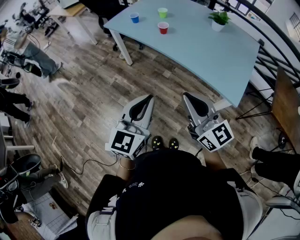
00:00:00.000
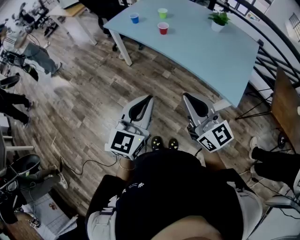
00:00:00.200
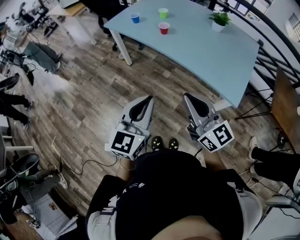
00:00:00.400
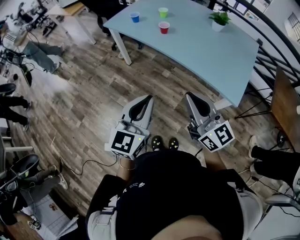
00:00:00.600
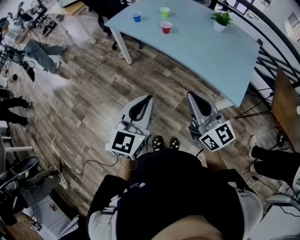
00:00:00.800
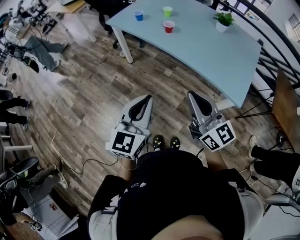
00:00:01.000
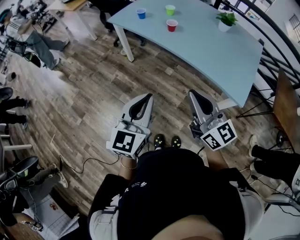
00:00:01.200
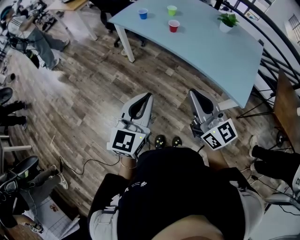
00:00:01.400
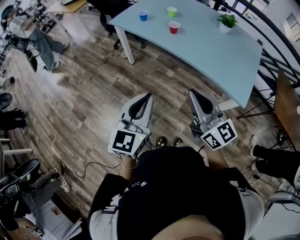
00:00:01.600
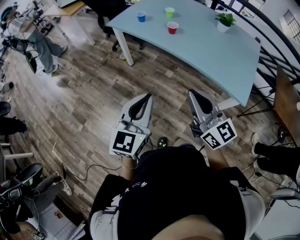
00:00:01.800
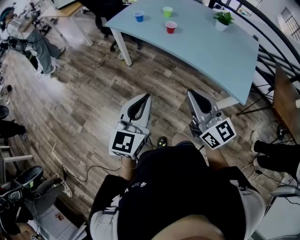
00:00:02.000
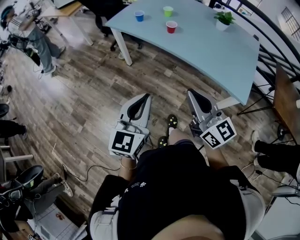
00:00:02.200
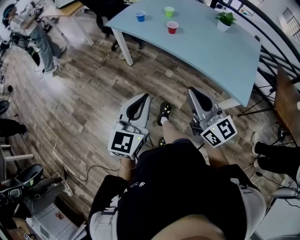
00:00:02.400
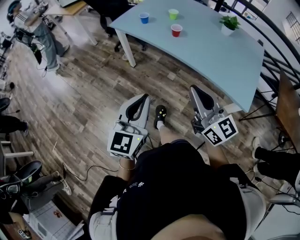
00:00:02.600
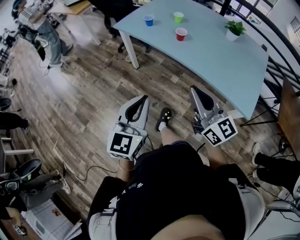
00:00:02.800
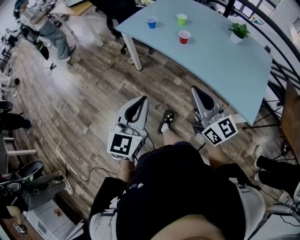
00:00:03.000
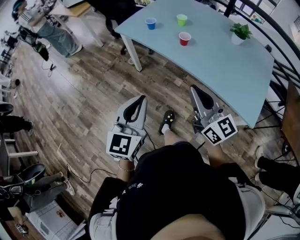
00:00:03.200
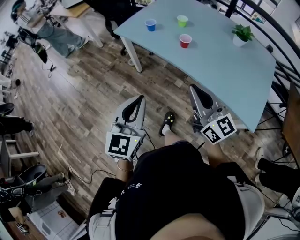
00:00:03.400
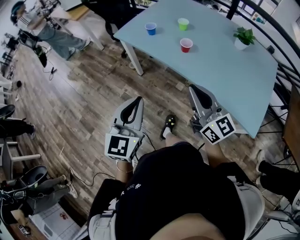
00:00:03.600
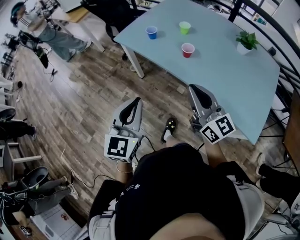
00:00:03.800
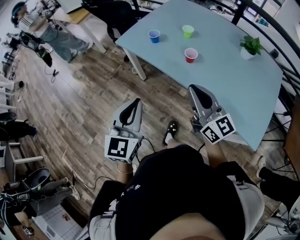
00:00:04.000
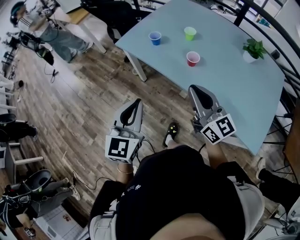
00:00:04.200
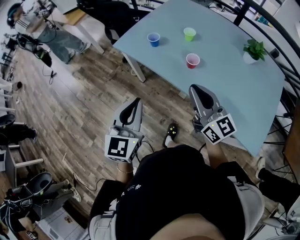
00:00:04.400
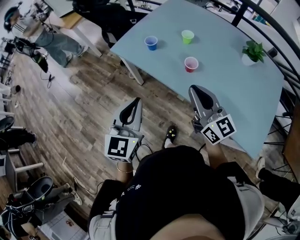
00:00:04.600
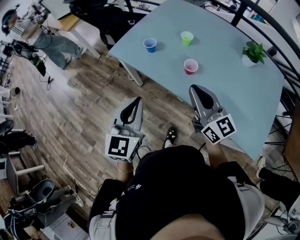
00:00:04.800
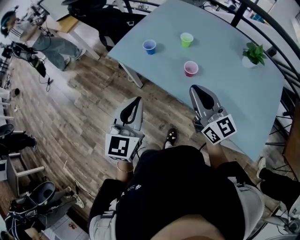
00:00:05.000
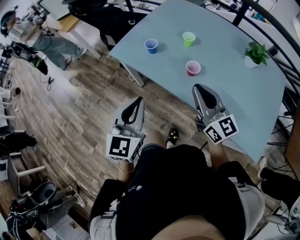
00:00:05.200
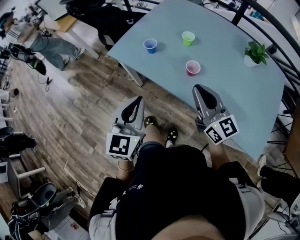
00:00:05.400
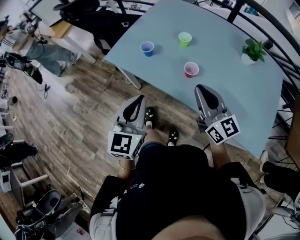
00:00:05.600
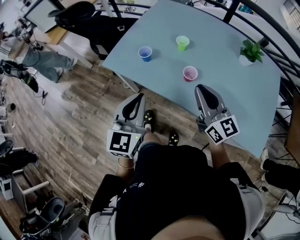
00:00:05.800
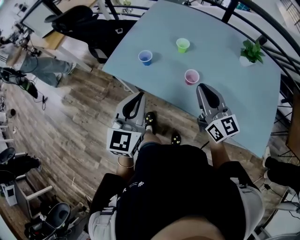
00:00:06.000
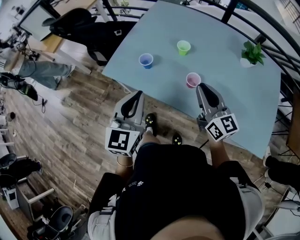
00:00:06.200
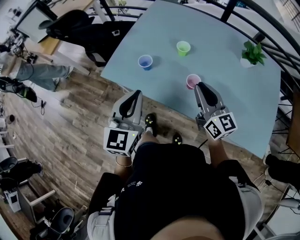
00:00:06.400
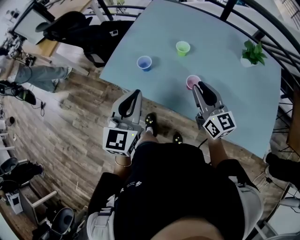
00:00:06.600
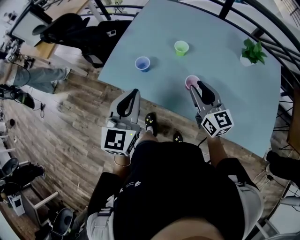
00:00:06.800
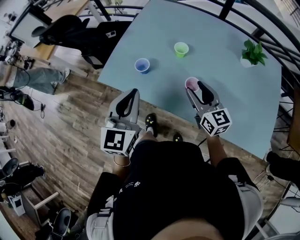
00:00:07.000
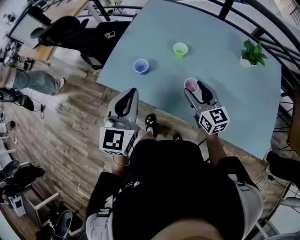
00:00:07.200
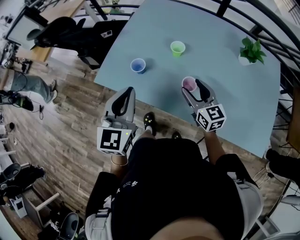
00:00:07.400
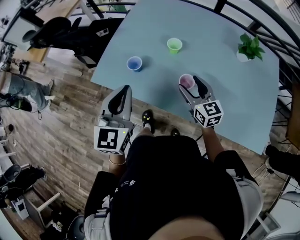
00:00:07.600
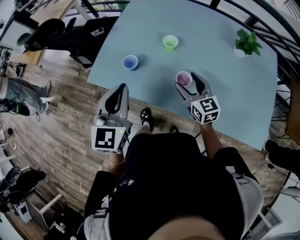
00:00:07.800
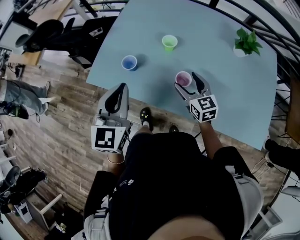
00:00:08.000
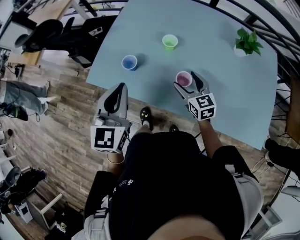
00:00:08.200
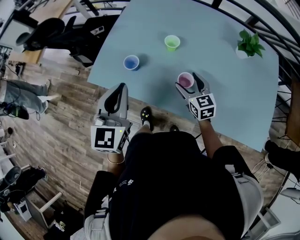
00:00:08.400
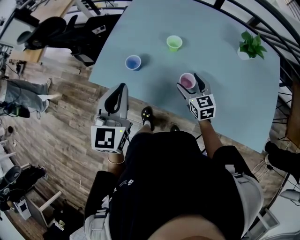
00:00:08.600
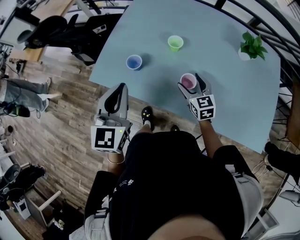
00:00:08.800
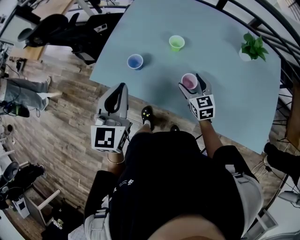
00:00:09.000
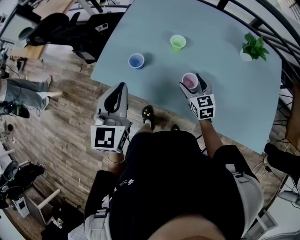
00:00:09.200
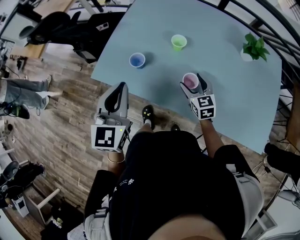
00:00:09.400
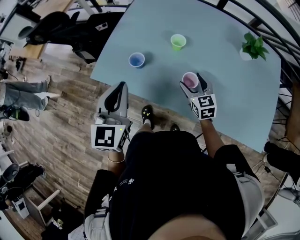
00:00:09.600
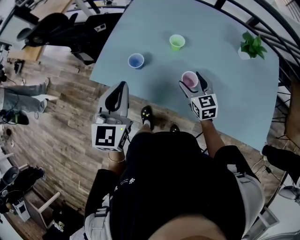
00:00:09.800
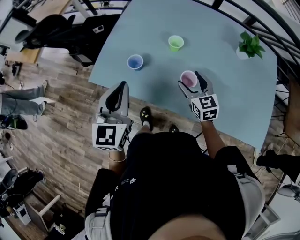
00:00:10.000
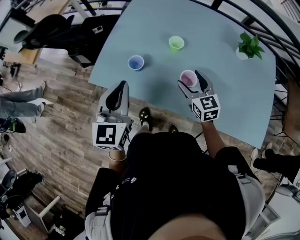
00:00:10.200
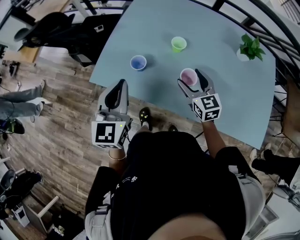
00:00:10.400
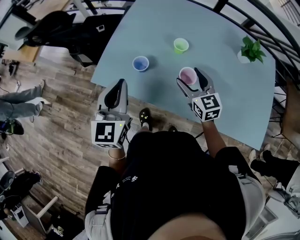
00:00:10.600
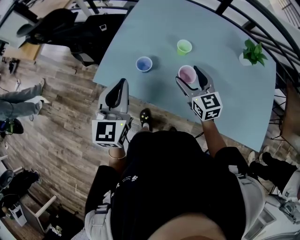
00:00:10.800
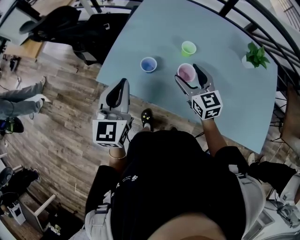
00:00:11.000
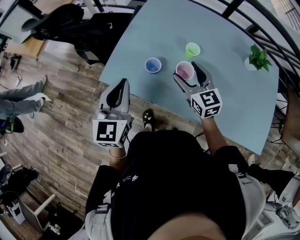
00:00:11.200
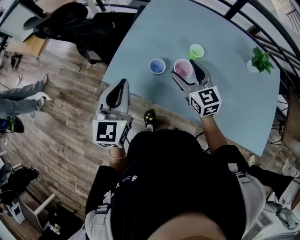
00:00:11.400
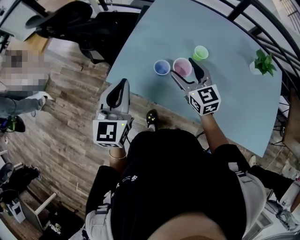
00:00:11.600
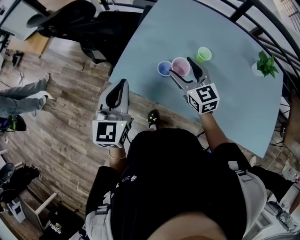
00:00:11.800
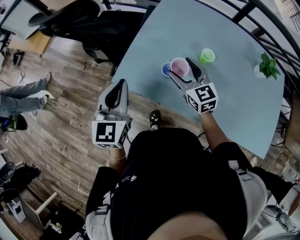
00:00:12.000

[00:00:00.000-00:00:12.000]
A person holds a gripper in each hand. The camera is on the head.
00:00:00.000 to 00:00:01.600: The grippers both shift to the left by roughly 10 cm.
00:00:01.600 to 00:00:03.000: The two grippers go about 10 cm forward.
00:00:03.000 to 00:00:04.400: The grippers both shift forward by about 20 cm.
00:00:04.400 to 00:00:06.000: The grippers both shift forward by approximately 15 cm.
00:00:06.000 to 00:00:07.600: The left gripper shifts roughly 10 cm forward. Meanwhile the right gripper is displaced downward and forward by some 15 cm, and opens up.
00:00:07.600 to 00:00:09.000: The right gripper is displaced downward by about 5 cm.
00:00:09.000 to 00:00:10.400: The right gripper shifts some 5 cm upward.
00:00:10.400 to 00:00:12.000: The right gripper goes about 20 cm to the left and forward. The left gripper shifts roughly 15 cm to the left.

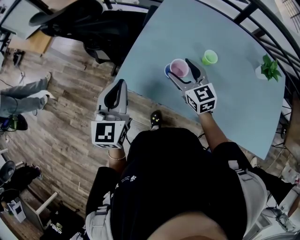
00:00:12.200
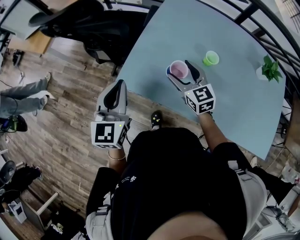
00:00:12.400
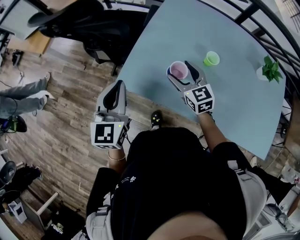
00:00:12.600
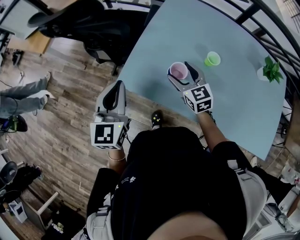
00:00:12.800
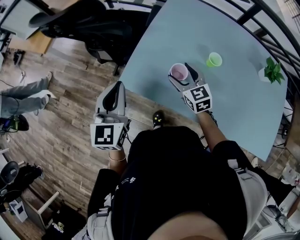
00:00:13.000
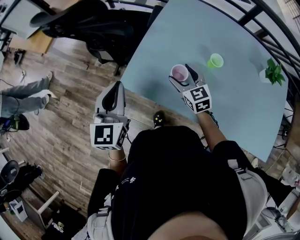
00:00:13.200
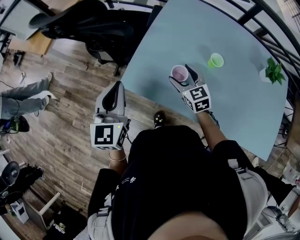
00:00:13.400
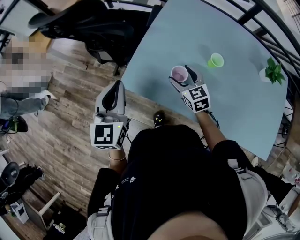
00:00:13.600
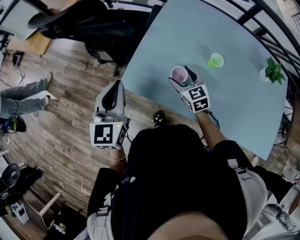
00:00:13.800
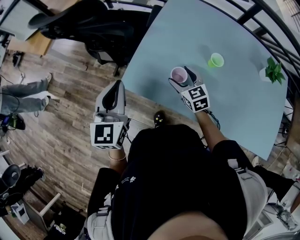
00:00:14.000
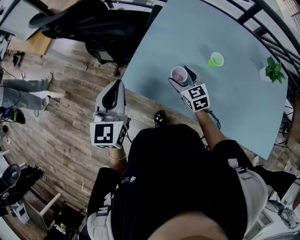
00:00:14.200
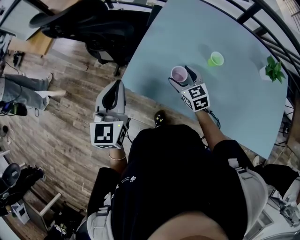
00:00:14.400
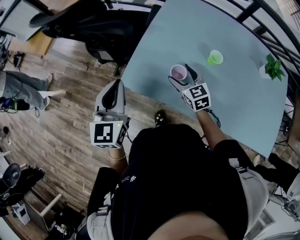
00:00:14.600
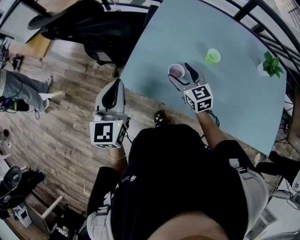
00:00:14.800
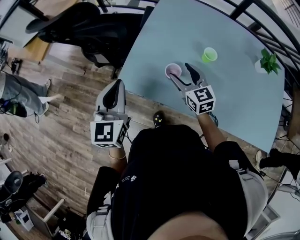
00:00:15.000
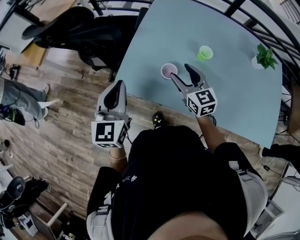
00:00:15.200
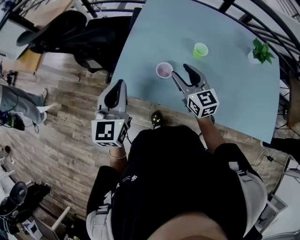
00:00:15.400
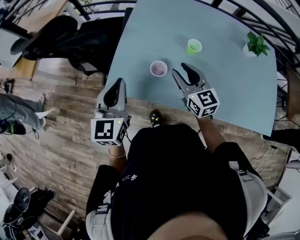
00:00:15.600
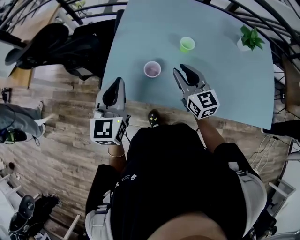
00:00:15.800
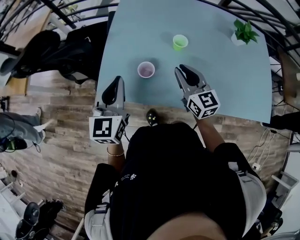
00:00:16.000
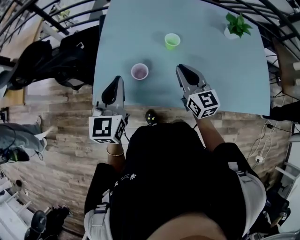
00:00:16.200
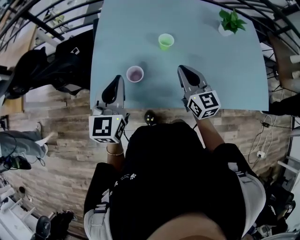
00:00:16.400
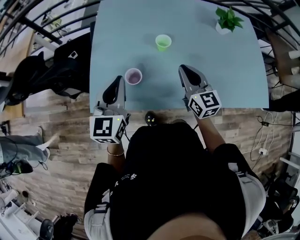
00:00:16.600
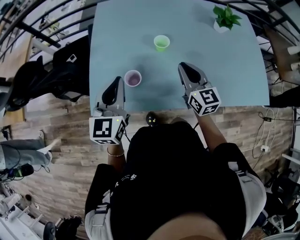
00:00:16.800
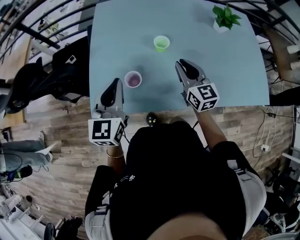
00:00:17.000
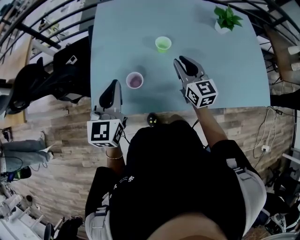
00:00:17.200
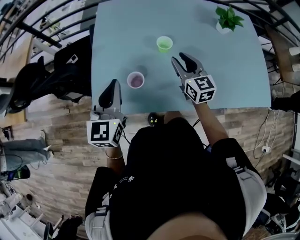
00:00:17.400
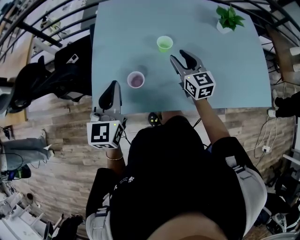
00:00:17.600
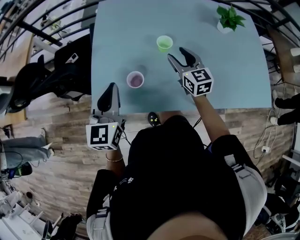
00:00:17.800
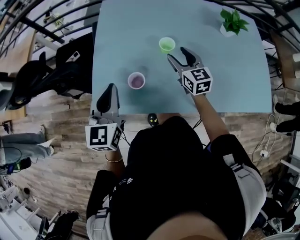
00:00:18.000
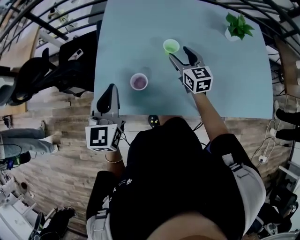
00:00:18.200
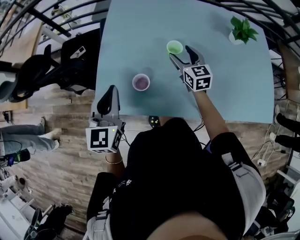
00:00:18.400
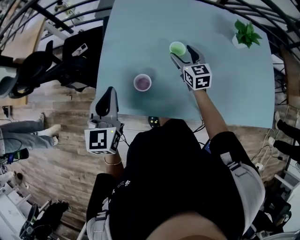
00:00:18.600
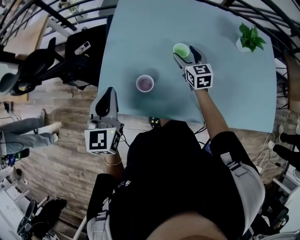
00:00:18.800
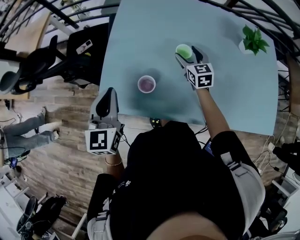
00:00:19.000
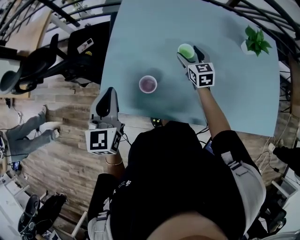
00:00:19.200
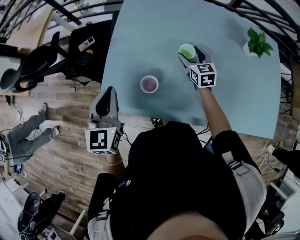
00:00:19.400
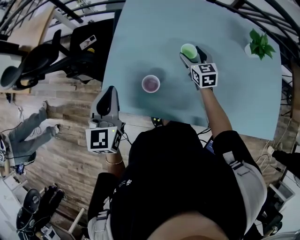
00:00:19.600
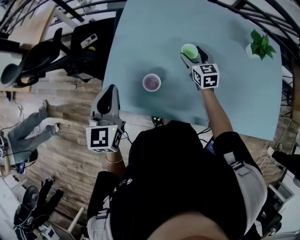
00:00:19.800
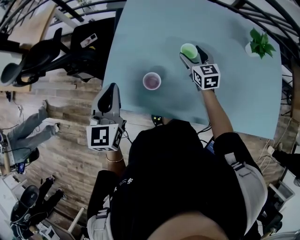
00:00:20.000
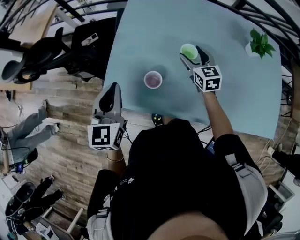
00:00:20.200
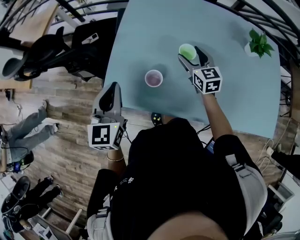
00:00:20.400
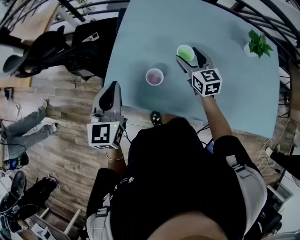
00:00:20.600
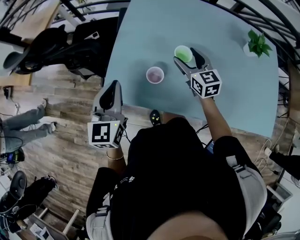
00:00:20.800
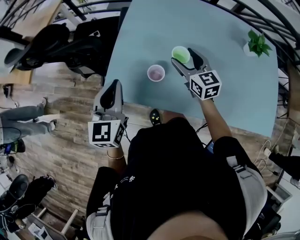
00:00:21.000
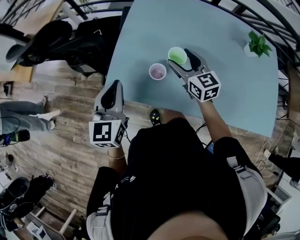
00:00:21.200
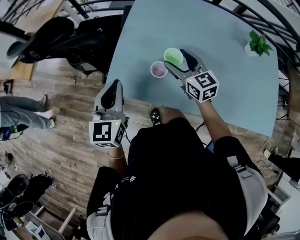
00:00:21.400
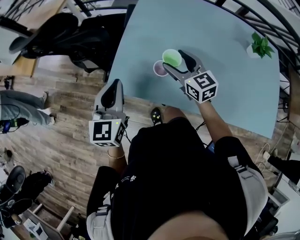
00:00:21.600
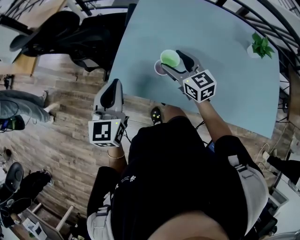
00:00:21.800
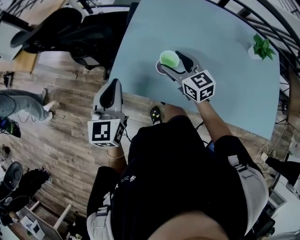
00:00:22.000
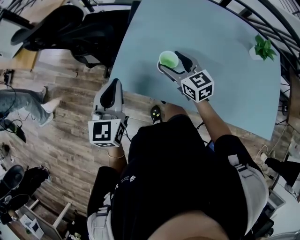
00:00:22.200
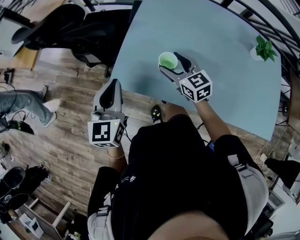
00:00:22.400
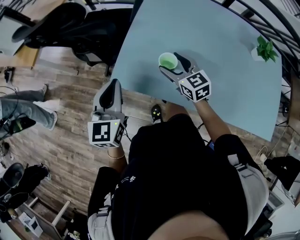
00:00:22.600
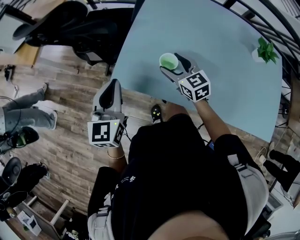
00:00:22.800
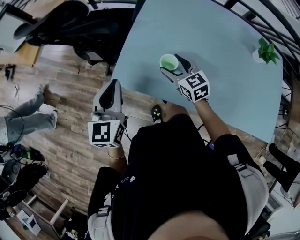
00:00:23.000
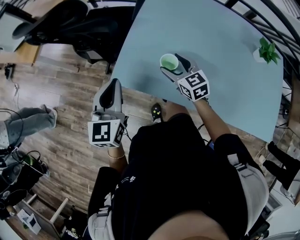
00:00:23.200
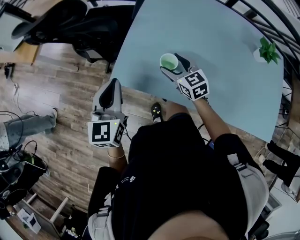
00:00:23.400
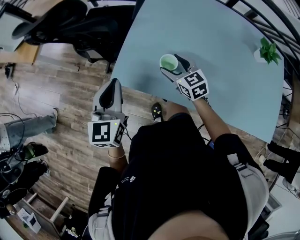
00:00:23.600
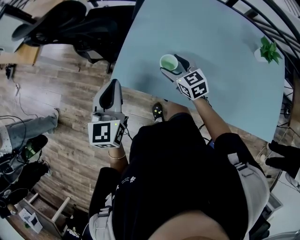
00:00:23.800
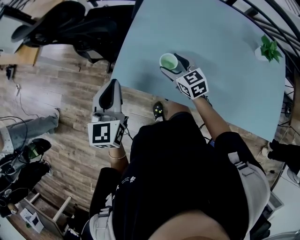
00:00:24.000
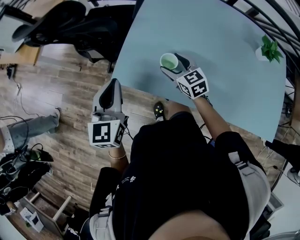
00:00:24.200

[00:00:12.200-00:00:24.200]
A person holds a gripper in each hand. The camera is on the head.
00:00:12.200 to 00:00:13.800: The right gripper goes some 10 cm downward.
00:00:13.800 to 00:00:15.200: The right gripper goes roughly 10 cm upward.
00:00:15.200 to 00:00:16.600: The left gripper goes roughly 15 cm to the right and forward, and turns by approximately 20 degrees; the right gripper heads to the right, covering about 15 cm, swivels roughly 30 degrees, and closes.
00:00:16.600 to 00:00:18.200: The right gripper is displaced forward and downward by roughly 15 cm, and opens up.
00:00:18.200 to 00:00:19.800: The right gripper moves forward and downward, approximately 10 cm; the left gripper heads to the left, covering some 5 cm.
00:00:19.800 to 00:00:21.200: The right gripper travels to the left, upward and backward by roughly 15 cm, while the left gripper moves roughly 5 cm.
00:00:21.200 to 00:00:22.600: The right gripper goes roughly 10 cm to the left. The left gripper travels to the left by about 5 cm.
00:00:22.600 to 00:00:24.200: The grippers move only a little.
